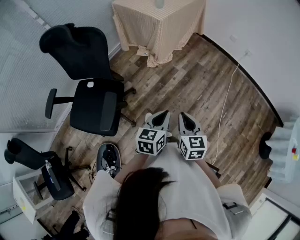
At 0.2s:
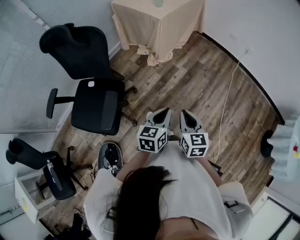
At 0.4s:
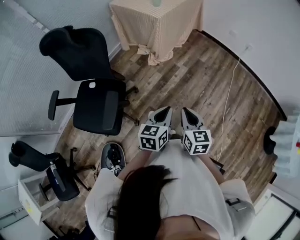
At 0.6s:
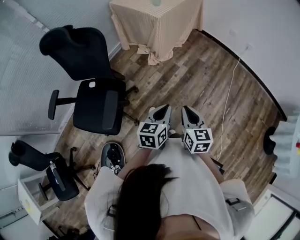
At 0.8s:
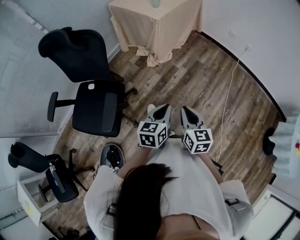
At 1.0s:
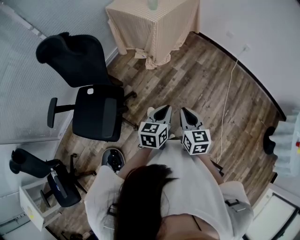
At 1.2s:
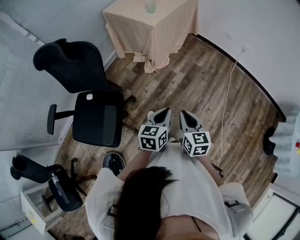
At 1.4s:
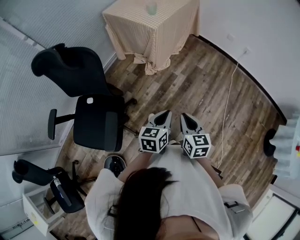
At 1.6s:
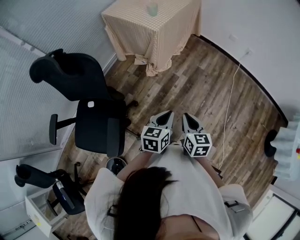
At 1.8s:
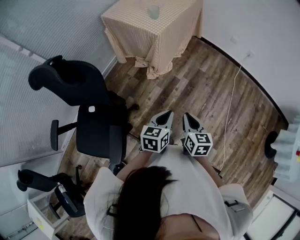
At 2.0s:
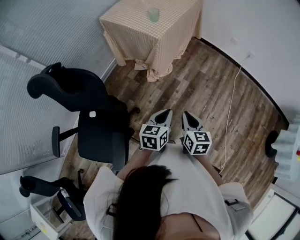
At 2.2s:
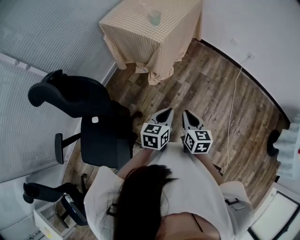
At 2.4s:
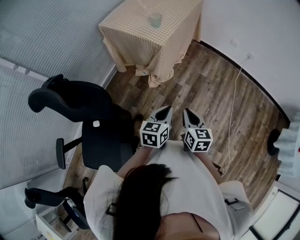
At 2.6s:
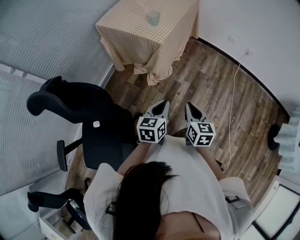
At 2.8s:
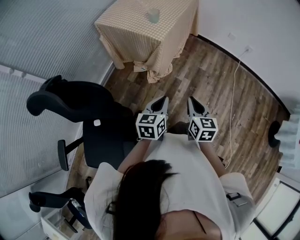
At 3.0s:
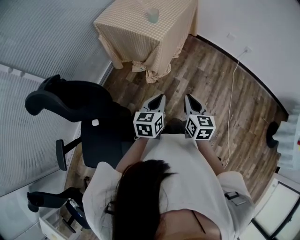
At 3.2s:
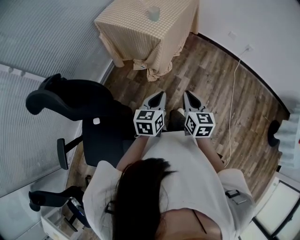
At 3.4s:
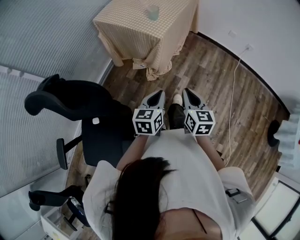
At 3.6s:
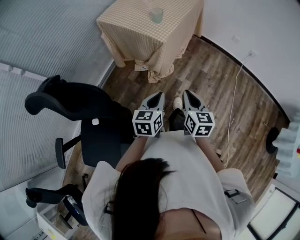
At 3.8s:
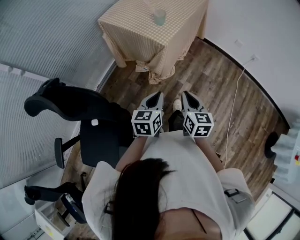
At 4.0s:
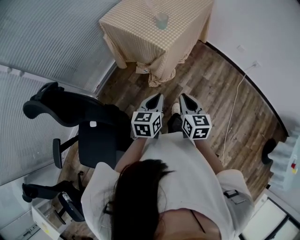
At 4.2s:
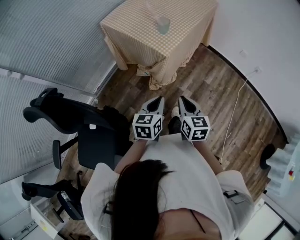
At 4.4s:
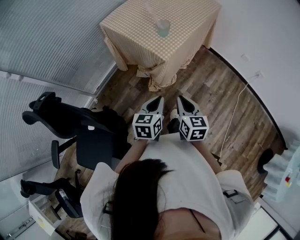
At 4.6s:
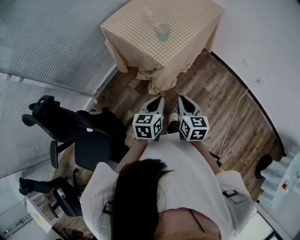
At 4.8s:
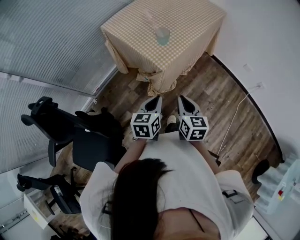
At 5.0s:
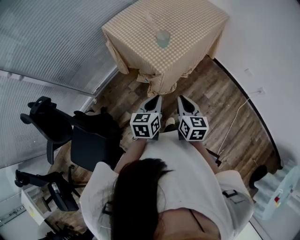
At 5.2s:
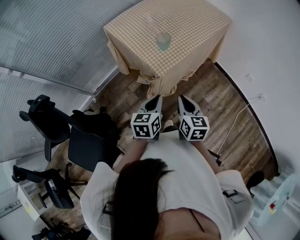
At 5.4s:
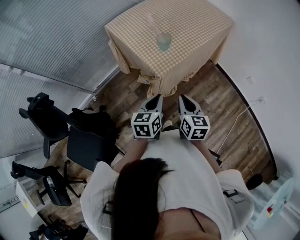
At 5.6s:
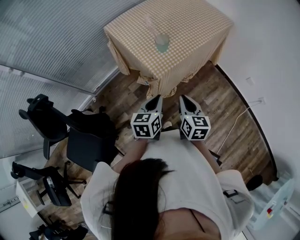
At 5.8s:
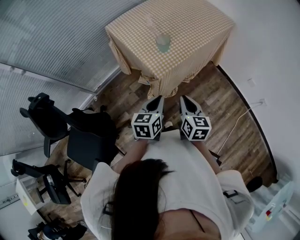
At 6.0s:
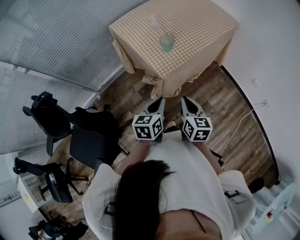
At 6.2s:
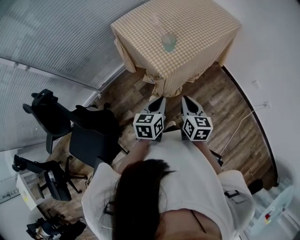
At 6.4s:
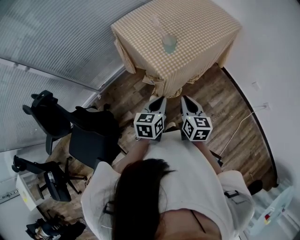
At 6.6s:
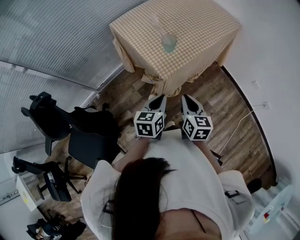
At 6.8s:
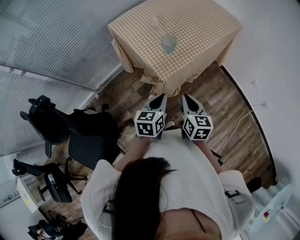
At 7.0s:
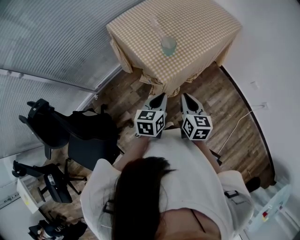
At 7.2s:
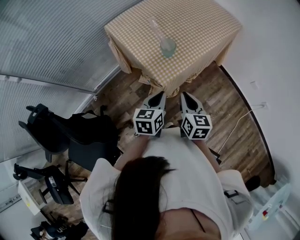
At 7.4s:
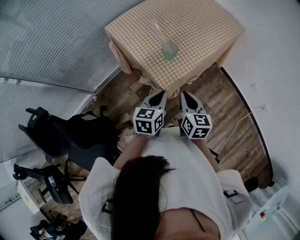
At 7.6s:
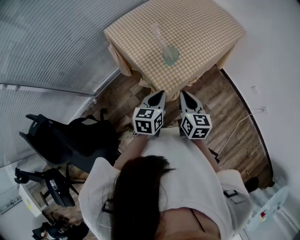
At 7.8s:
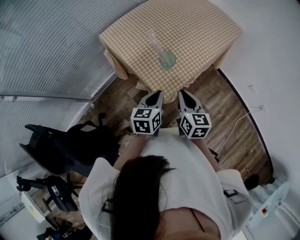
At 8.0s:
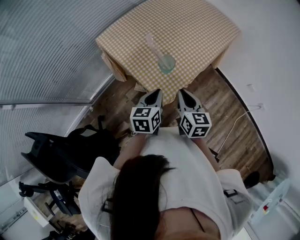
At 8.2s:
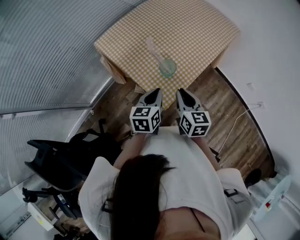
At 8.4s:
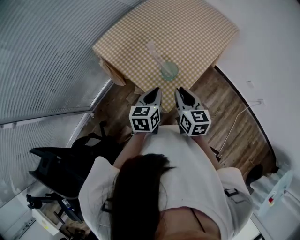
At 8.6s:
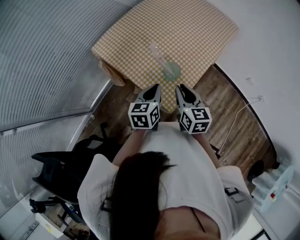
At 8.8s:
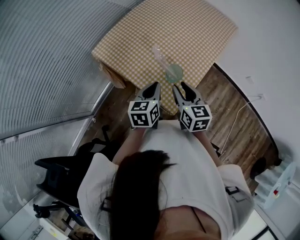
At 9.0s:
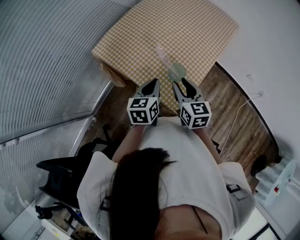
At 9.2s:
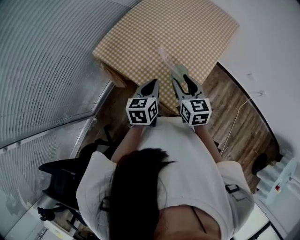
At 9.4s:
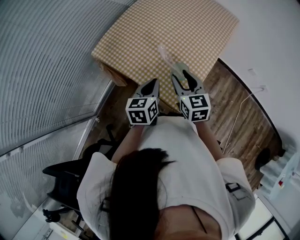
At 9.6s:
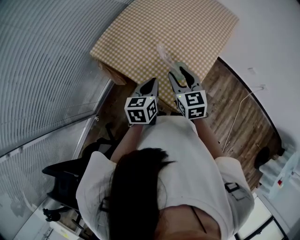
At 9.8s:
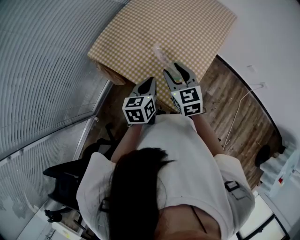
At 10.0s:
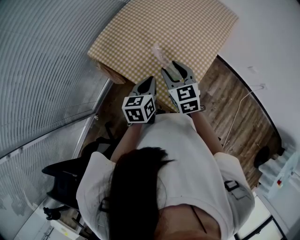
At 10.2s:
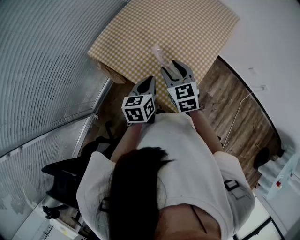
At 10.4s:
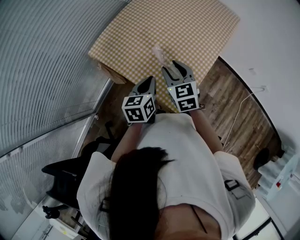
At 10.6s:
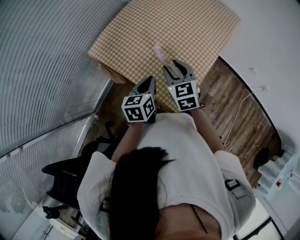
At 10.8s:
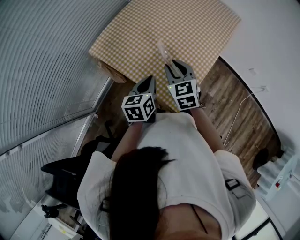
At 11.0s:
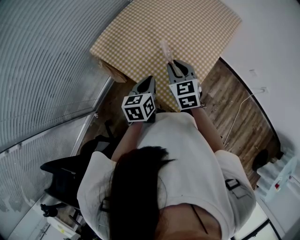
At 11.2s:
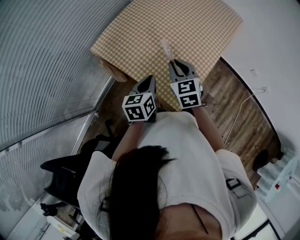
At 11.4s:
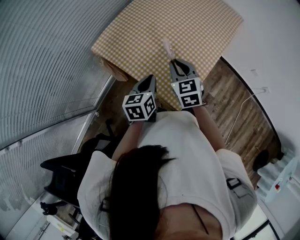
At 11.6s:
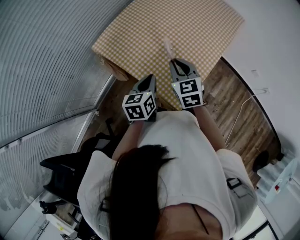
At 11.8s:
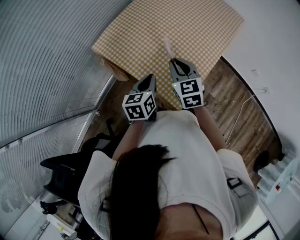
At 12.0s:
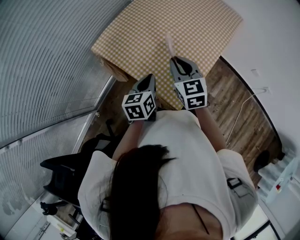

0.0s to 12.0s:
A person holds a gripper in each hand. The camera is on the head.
0.0s to 1.6s: The two grippers go some 15 cm forward.
1.6s to 3.0s: Both grippers move forward and to the left, approximately 20 cm.
3.0s to 4.4s: The grippers both shift forward by approximately 15 cm.
4.4s to 6.0s: The grippers both shift forward and to the right by about 10 cm.
6.0s to 7.6s: The two grippers go approximately 15 cm forward.
7.6s to 9.0s: Both grippers move forward and to the left, roughly 15 cm. The right gripper opens.
9.0s to 10.4s: The right gripper is displaced forward by some 5 cm.
10.4s to 12.0s: The right gripper closes its fingers.

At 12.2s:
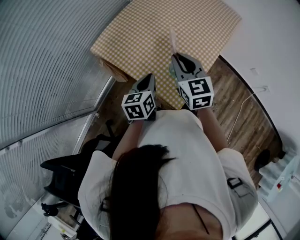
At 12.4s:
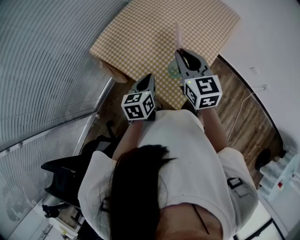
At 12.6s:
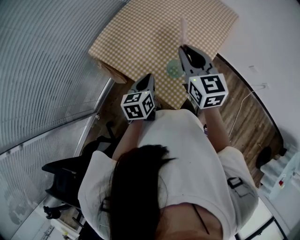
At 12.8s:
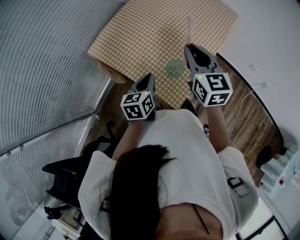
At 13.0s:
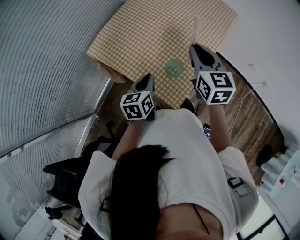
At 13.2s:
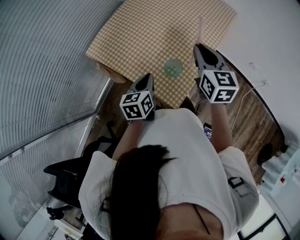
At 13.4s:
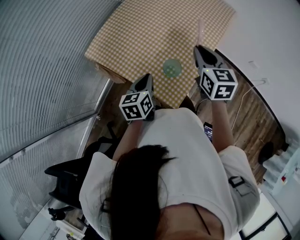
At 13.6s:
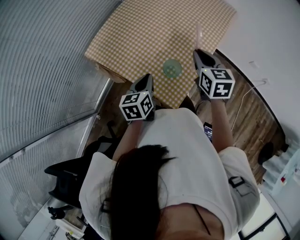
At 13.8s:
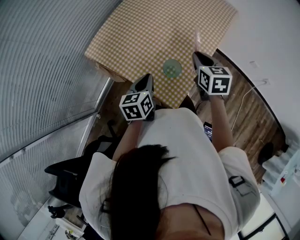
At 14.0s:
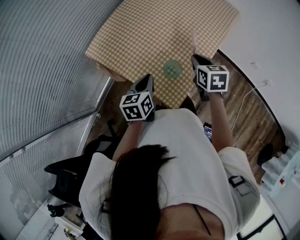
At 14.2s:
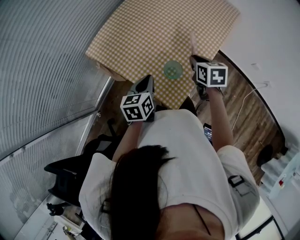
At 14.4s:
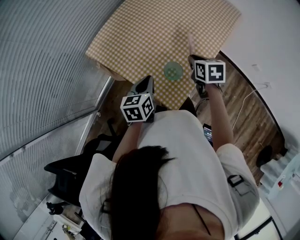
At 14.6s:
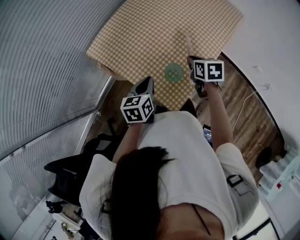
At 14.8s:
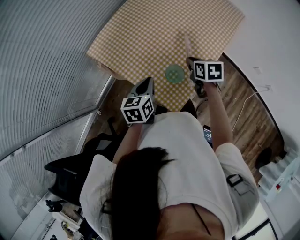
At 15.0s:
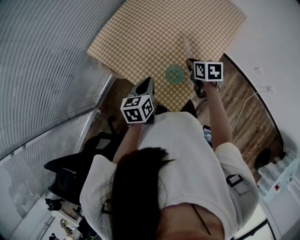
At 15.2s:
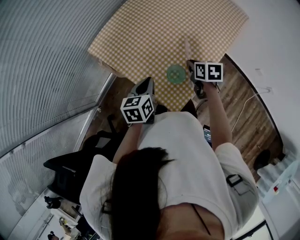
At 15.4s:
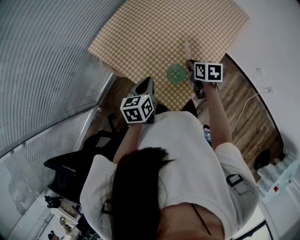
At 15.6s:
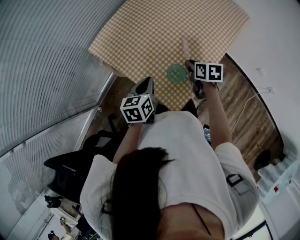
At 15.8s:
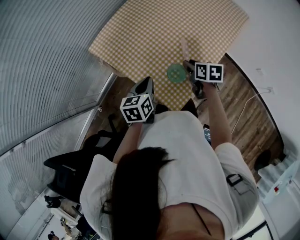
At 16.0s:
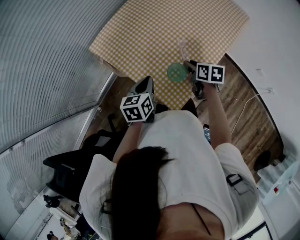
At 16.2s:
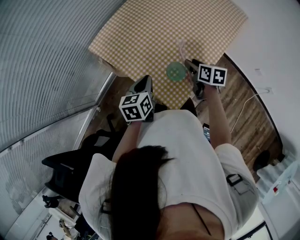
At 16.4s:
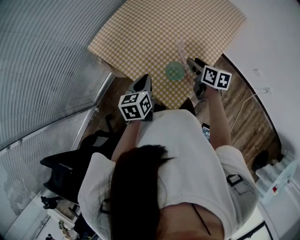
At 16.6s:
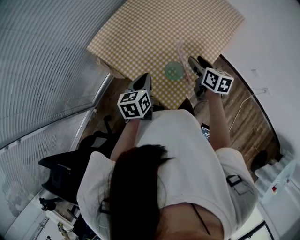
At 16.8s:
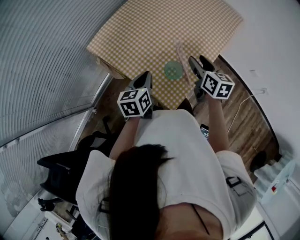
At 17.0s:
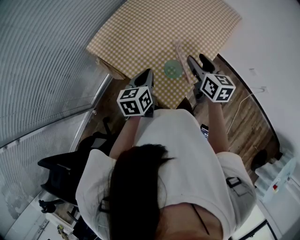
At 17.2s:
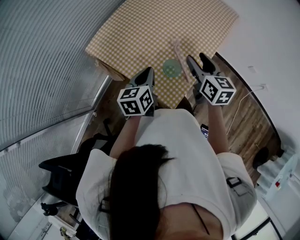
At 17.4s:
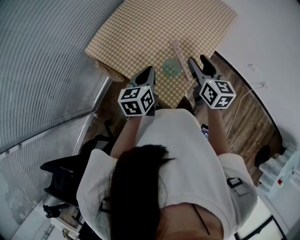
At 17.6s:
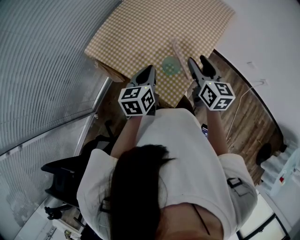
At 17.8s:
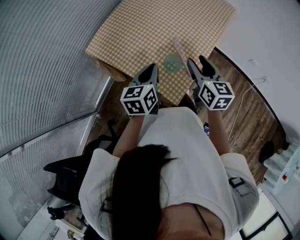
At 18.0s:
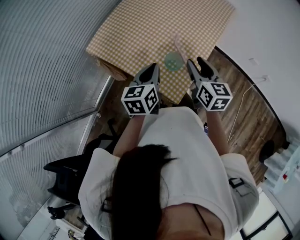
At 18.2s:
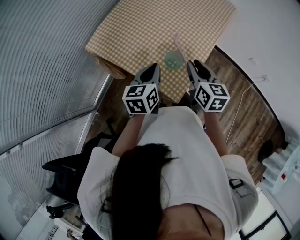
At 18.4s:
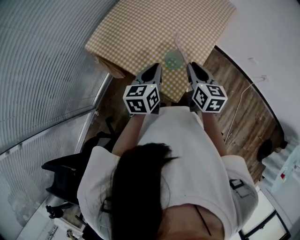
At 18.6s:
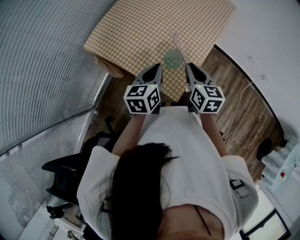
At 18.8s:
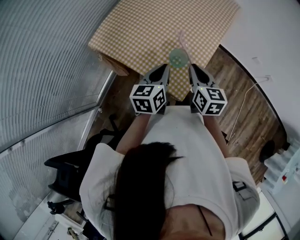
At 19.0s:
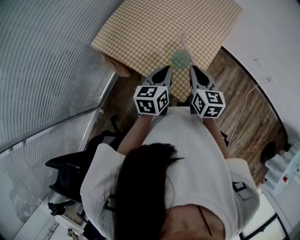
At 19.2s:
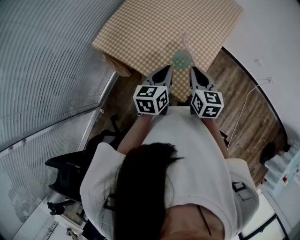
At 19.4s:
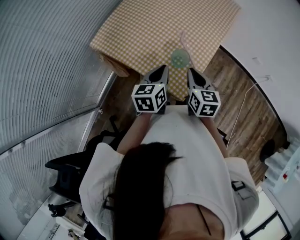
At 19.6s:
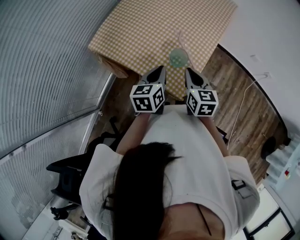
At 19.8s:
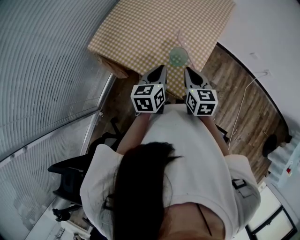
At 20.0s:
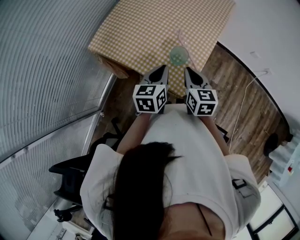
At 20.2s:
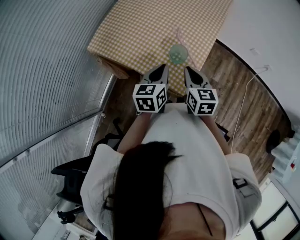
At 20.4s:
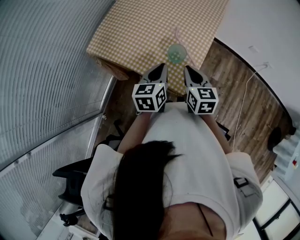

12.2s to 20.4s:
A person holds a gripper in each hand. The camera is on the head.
12.2s to 13.8s: The right gripper is displaced to the right and downward by approximately 15 cm, and changes its angle by about 20 degrees.
13.8s to 15.4s: The right gripper heads downward, covering about 10 cm, and swivels about 20 degrees.
15.4s to 17.2s: The right gripper travels upward by roughly 15 cm, rotates approximately 30 degrees, and opens up, while the left gripper shifts by approximately 5 cm.
17.2s to 18.8s: The right gripper moves backward, about 10 cm, and closes up.
18.8s to 20.4s: The grippers make only small movements.

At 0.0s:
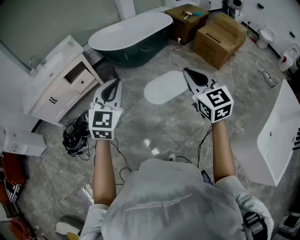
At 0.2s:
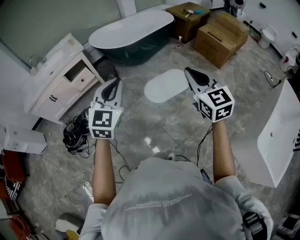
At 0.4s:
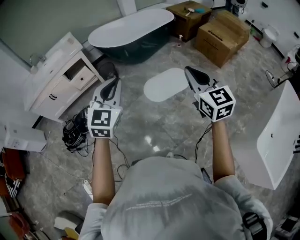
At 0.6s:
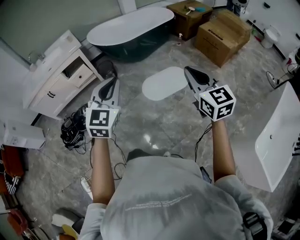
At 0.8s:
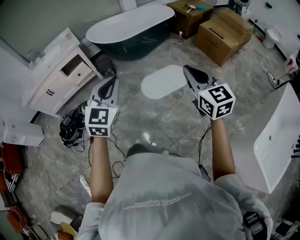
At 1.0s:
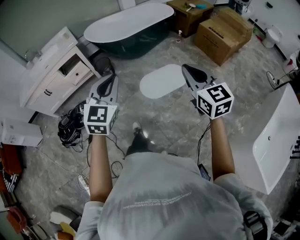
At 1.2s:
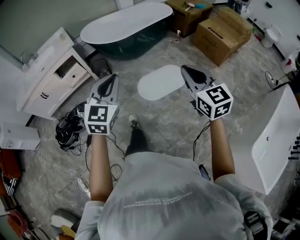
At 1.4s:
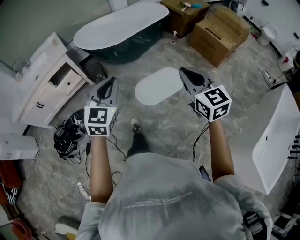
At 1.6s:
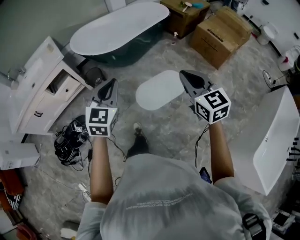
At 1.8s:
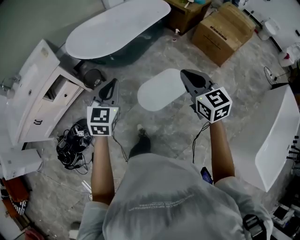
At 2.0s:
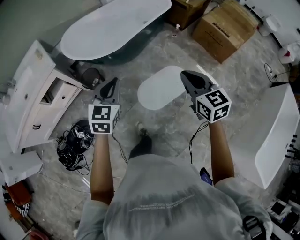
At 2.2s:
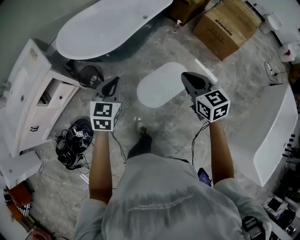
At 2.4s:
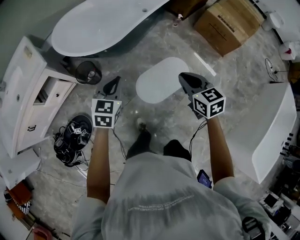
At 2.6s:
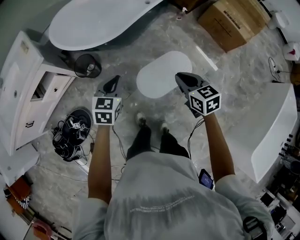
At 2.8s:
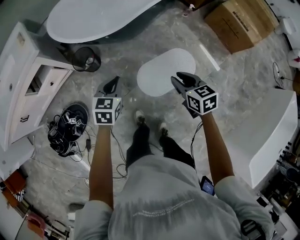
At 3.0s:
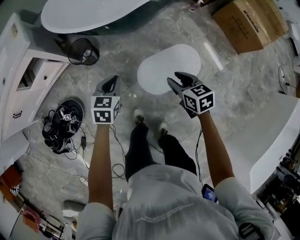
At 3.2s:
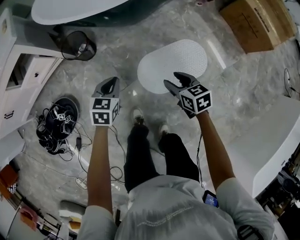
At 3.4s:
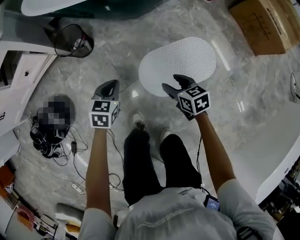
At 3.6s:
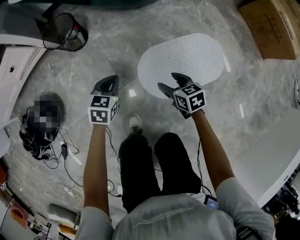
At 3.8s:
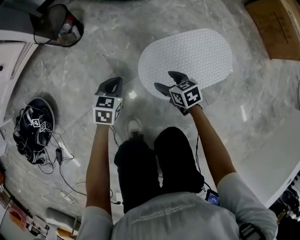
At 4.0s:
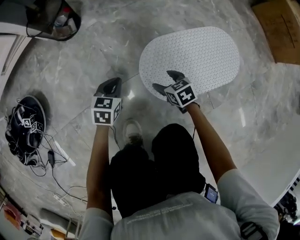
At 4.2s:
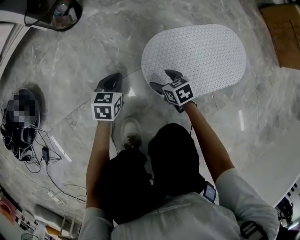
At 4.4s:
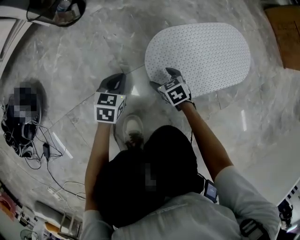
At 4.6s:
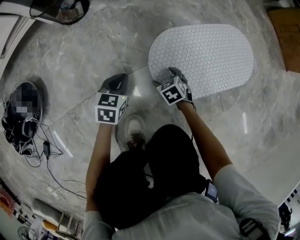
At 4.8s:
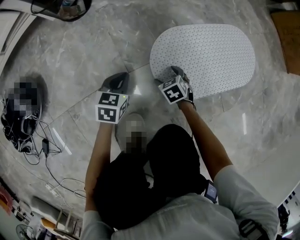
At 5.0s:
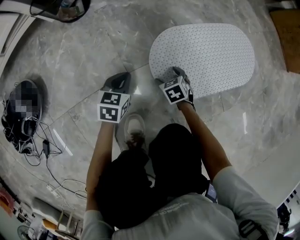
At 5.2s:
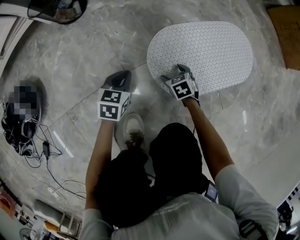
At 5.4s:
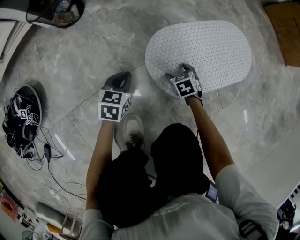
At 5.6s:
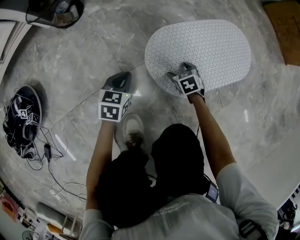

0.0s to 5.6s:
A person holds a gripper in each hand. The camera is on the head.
0.0s to 1.4s: The left gripper goes roughly 20 cm forward and downward. Meanwhile the right gripper goes roughly 20 cm forward, to the right and downward.
1.4s to 2.8s: Both grippers move forward and downward, approximately 40 cm. The right gripper turns by approximately 30 degrees. The left gripper swivels some 30 degrees.
2.8s to 4.2s: The grippers both shift downward by roughly 70 cm. The right gripper changes its angle by approximately 20 degrees, and opens.
4.2s to 5.6s: The right gripper is displaced to the right and downward by some 10 cm.
